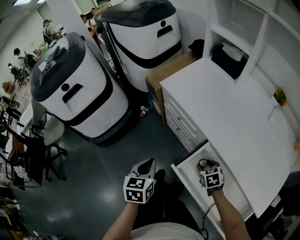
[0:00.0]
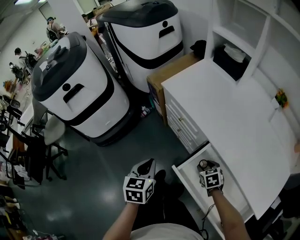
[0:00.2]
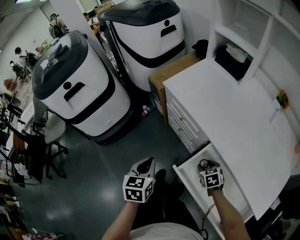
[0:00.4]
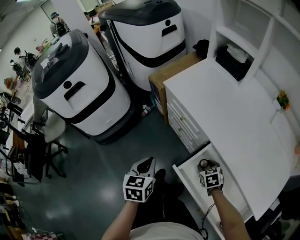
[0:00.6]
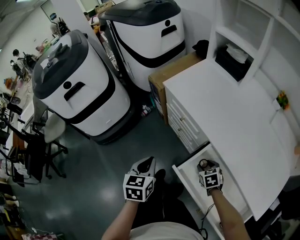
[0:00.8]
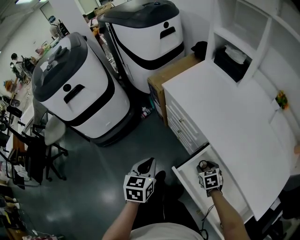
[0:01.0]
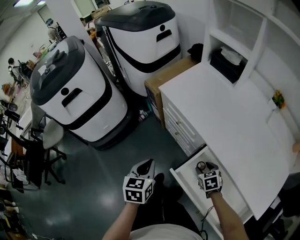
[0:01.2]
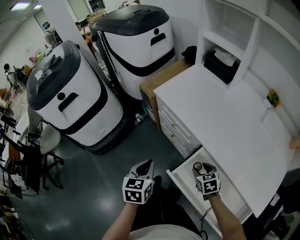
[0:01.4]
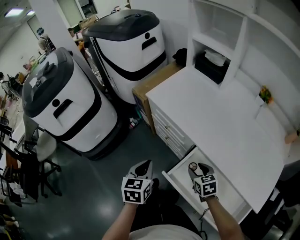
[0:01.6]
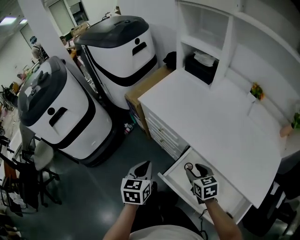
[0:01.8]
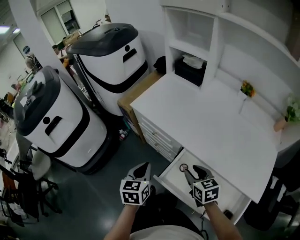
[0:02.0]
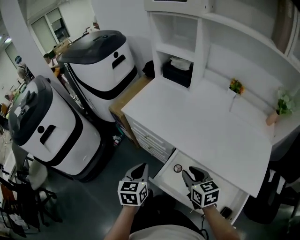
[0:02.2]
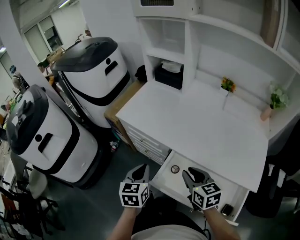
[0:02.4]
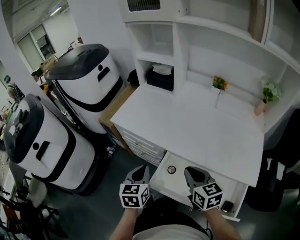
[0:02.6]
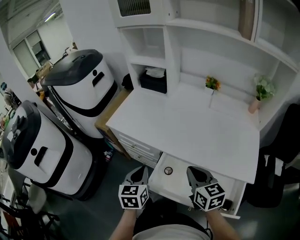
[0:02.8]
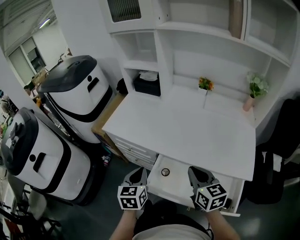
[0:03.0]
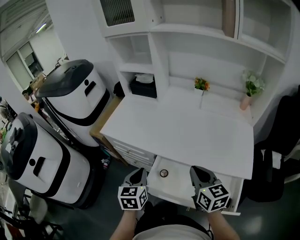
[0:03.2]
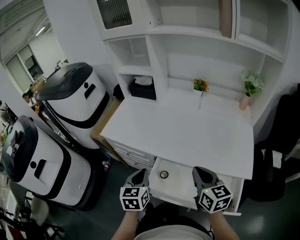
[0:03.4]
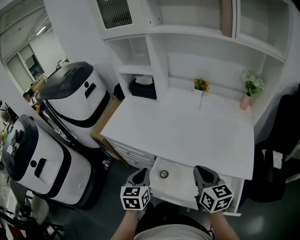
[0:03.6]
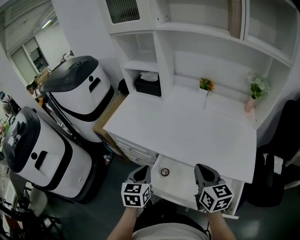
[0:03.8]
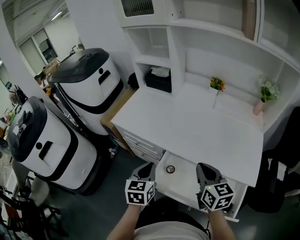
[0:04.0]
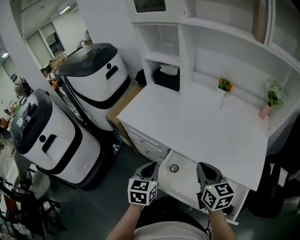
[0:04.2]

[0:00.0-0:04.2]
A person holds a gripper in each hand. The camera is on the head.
0:00.0 to 0:01.4: The grippers move only a little.
0:01.4 to 0:02.8: The right gripper goes approximately 20 cm upward, tilts its fingers some 30 degrees upward, and closes; the left gripper is displaced to the right by approximately 15 cm, and rotates roughly 20 degrees.

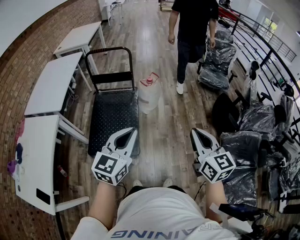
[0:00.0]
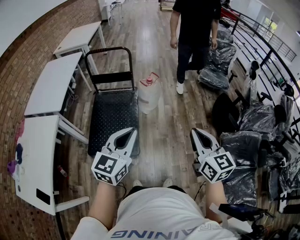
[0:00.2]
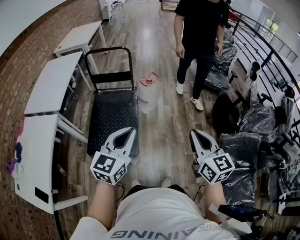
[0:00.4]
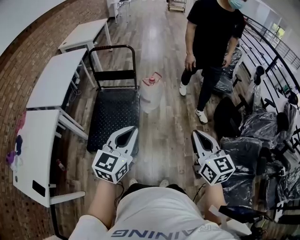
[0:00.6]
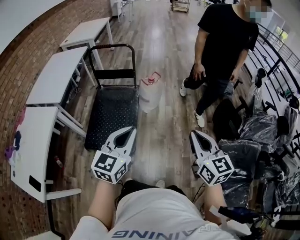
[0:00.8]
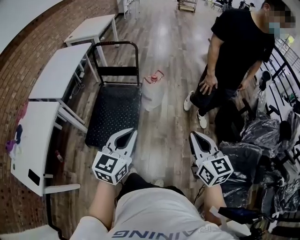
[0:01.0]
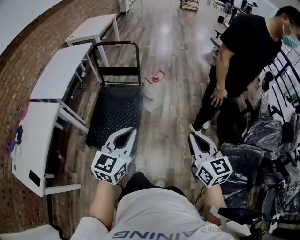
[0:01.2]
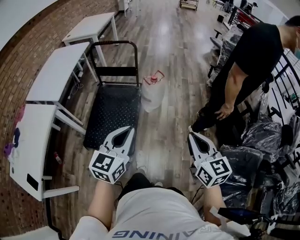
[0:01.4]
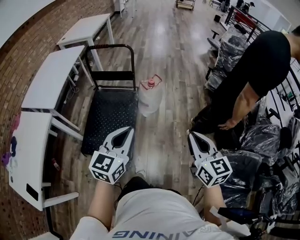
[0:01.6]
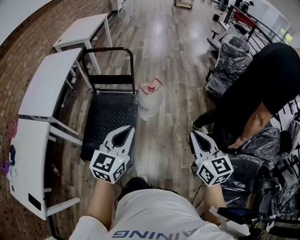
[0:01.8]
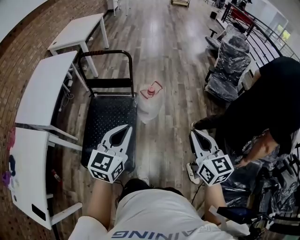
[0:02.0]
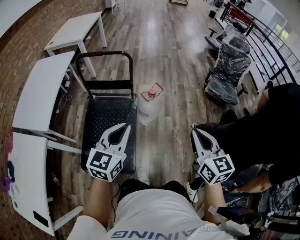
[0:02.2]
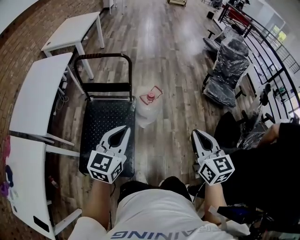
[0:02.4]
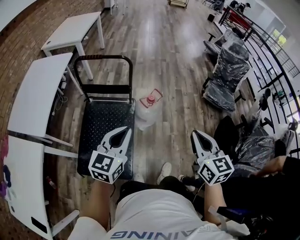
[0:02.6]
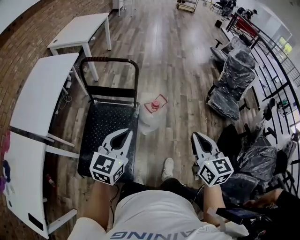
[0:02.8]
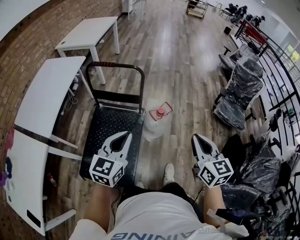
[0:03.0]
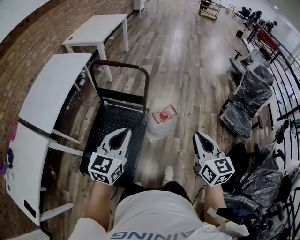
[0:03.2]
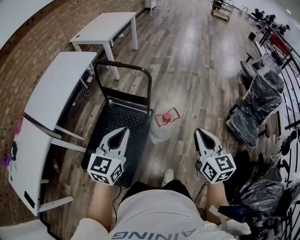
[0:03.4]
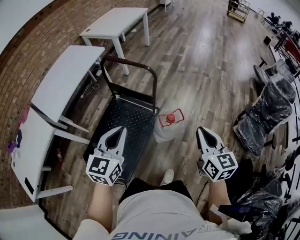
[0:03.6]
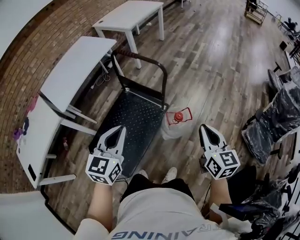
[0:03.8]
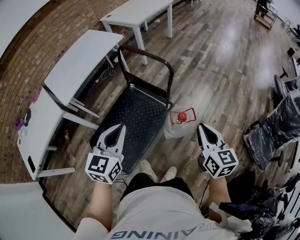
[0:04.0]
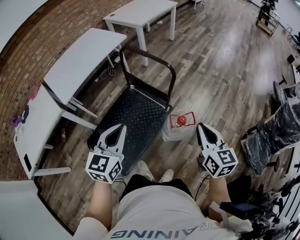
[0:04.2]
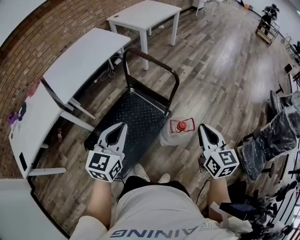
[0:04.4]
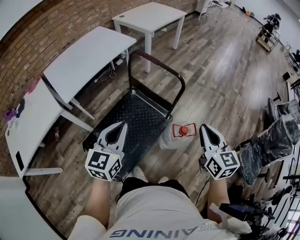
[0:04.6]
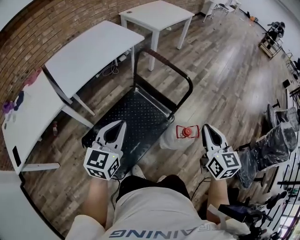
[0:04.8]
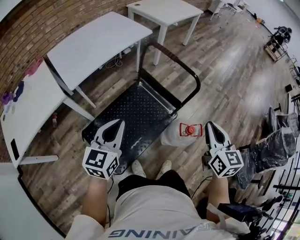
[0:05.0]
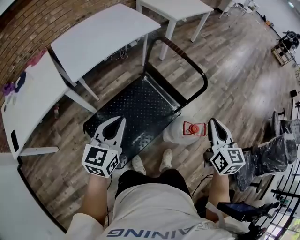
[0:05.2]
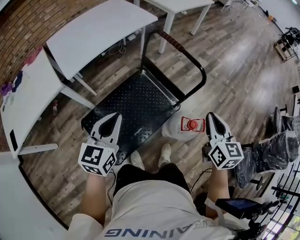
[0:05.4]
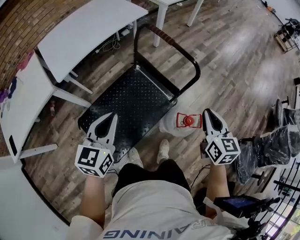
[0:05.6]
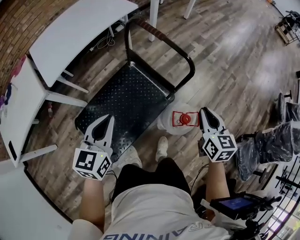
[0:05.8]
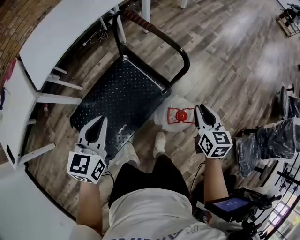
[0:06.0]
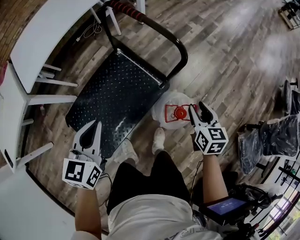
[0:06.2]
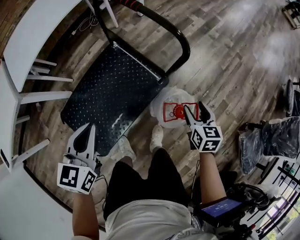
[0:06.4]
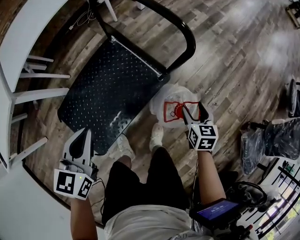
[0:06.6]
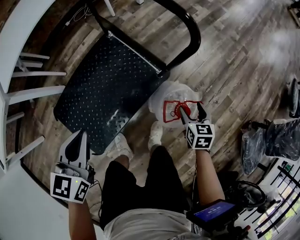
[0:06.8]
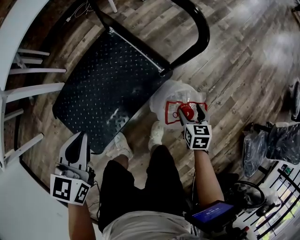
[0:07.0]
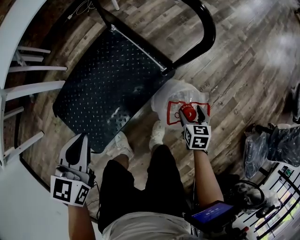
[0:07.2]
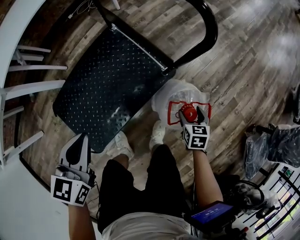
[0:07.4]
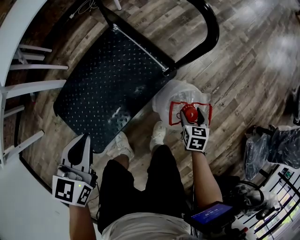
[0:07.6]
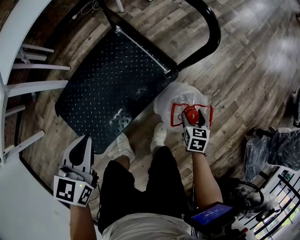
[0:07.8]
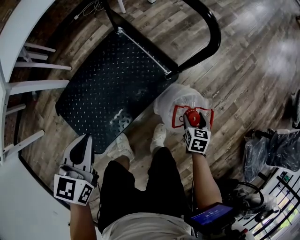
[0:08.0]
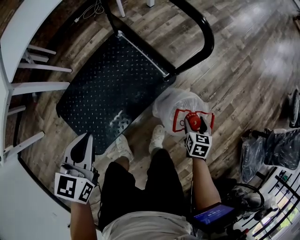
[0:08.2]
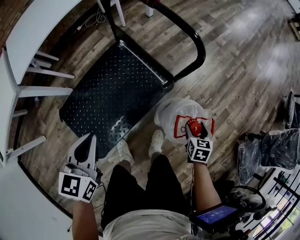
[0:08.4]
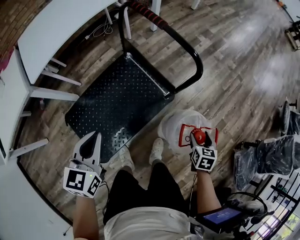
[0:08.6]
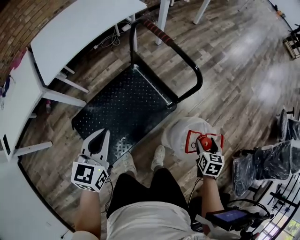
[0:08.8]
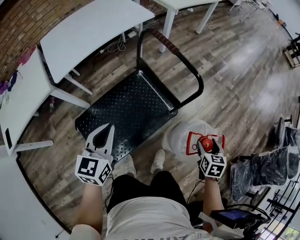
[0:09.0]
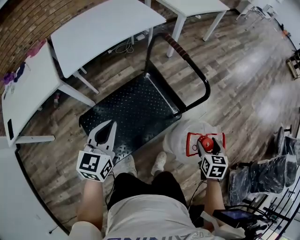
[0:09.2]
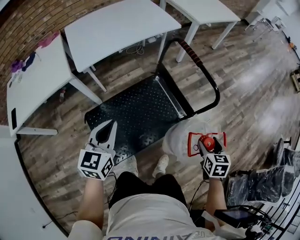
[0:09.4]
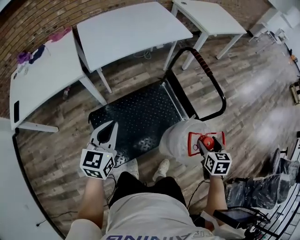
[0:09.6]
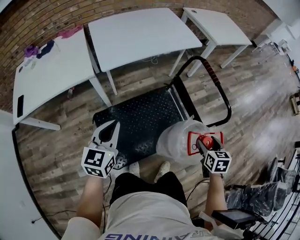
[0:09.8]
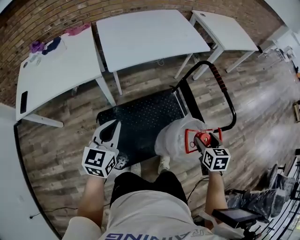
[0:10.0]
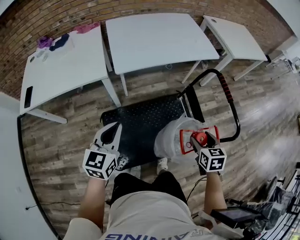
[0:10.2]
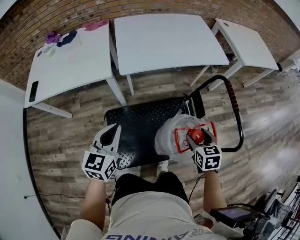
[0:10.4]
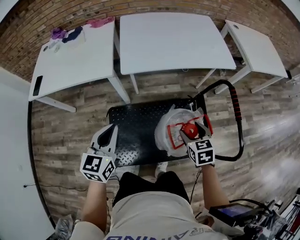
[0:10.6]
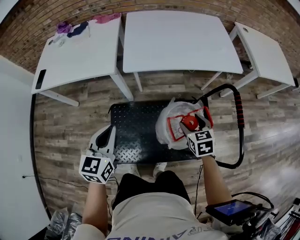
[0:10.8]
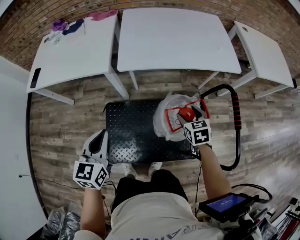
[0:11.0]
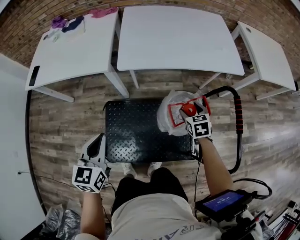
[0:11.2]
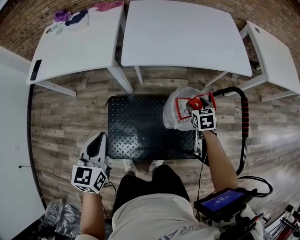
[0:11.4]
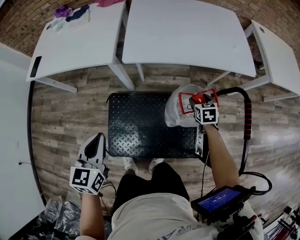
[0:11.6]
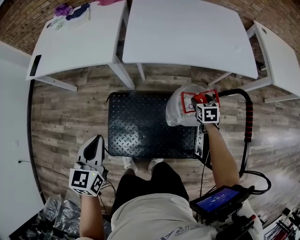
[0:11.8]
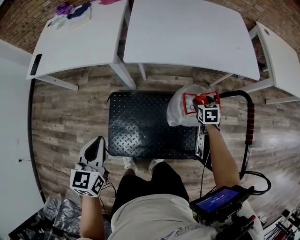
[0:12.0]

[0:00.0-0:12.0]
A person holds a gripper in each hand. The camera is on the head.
0:00.0 to 0:01.6: Both grippers travel together forward, about 10 cm.
0:01.6 to 0:03.0: The right gripper is displaced forward by about 30 cm. The left gripper moves forward and to the left, roughly 25 cm.
0:03.0 to 0:04.4: The left gripper changes place by some 10 cm, and changes its angle by some 30 degrees; the right gripper shifts by approximately 20 cm, and swivels some 30 degrees.
0:04.4 to 0:06.0: The left gripper moves downward and forward, some 15 cm, and moves about 15 cm to the left and comes back, while the right gripper goes some 25 cm downward and forward.
0:06.0 to 0:07.6: The right gripper is displaced downward by about 35 cm, changes its angle by some 20 degrees, and opens its fingers. Meanwhile the left gripper moves downward, approximately 15 cm.
0:07.6 to 0:09.0: The right gripper goes some 30 cm upward. Meanwhile the left gripper goes about 20 cm upward.
0:09.0 to 0:10.4: The left gripper changes place by roughly 25 cm, and rotates roughly 30 degrees; the right gripper moves approximately 40 cm, and turns by roughly 40 degrees.
0:10.4 to 0:12.0: The right gripper is displaced forward and downward by approximately 30 cm; the left gripper is displaced downward by about 5 cm, and changes its angle by approximately 30 degrees.

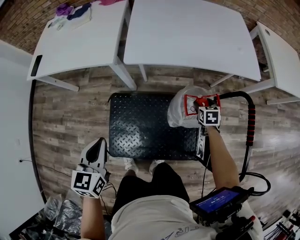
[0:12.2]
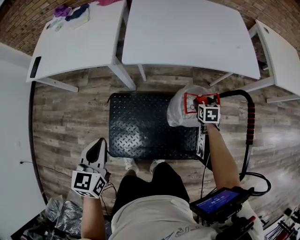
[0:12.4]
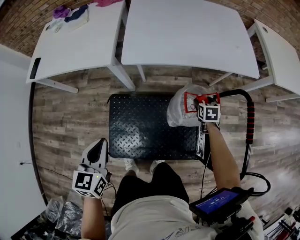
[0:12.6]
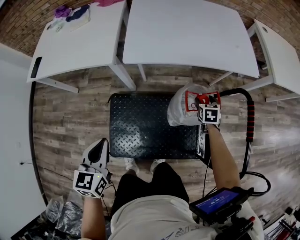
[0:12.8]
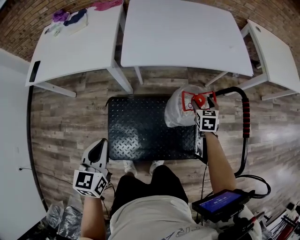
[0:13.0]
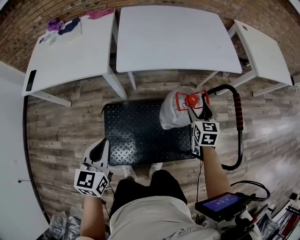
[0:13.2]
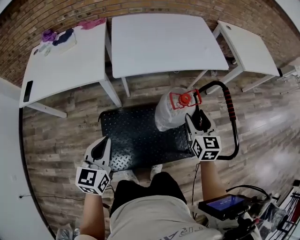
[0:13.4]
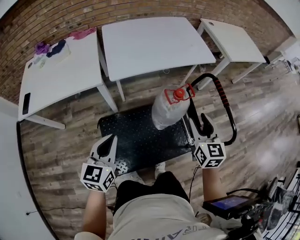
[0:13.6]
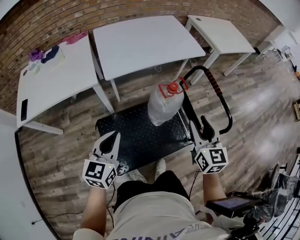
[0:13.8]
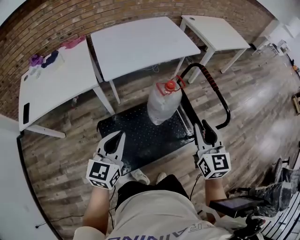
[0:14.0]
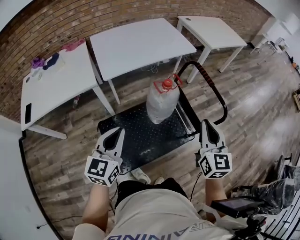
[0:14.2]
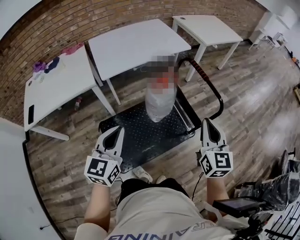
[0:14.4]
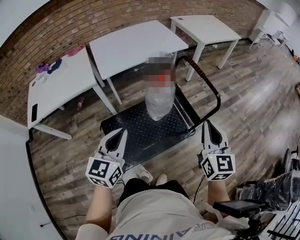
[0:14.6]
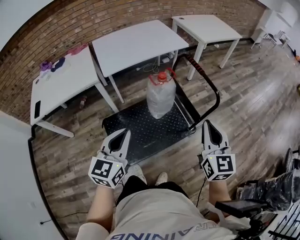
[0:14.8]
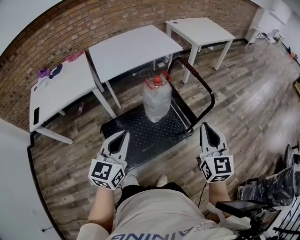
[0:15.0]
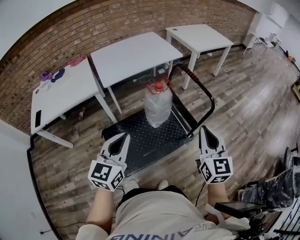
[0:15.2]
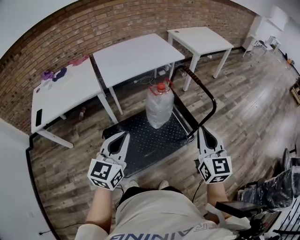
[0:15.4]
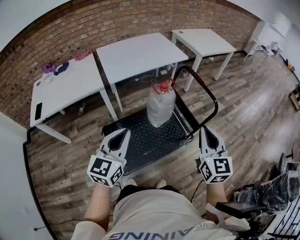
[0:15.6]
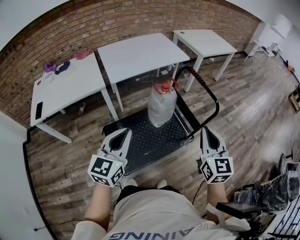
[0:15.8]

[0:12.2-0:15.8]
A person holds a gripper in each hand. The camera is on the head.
0:12.2 to 0:14.0: The right gripper goes roughly 40 cm upward, tips its fingers upward by about 40 degrees, and closes up. The left gripper is displaced upward by some 10 cm, and changes its angle by roughly 40 degrees.
0:14.0 to 0:15.8: The grippers both shift backward and upward by some 15 cm. The right gripper closes its fingers.

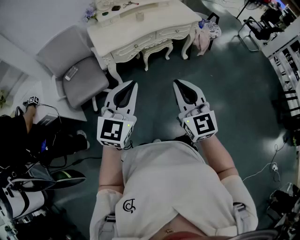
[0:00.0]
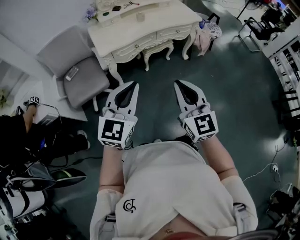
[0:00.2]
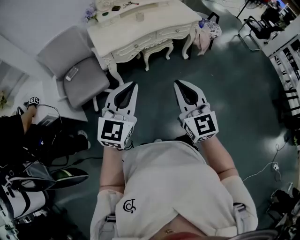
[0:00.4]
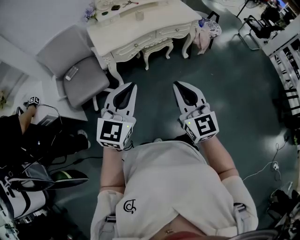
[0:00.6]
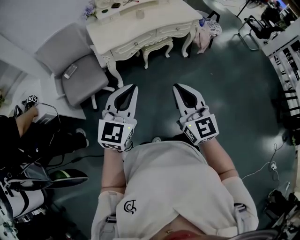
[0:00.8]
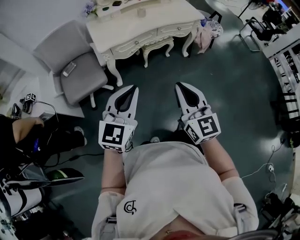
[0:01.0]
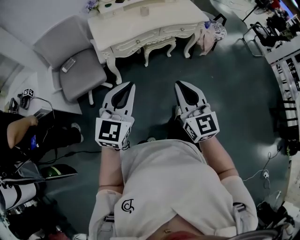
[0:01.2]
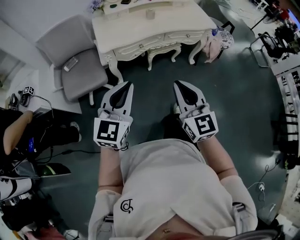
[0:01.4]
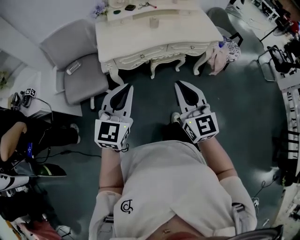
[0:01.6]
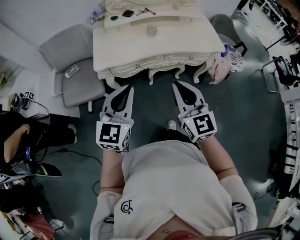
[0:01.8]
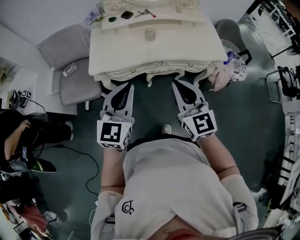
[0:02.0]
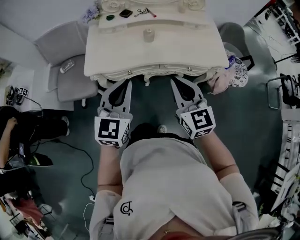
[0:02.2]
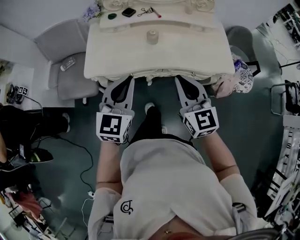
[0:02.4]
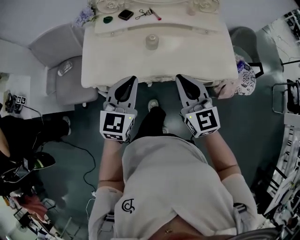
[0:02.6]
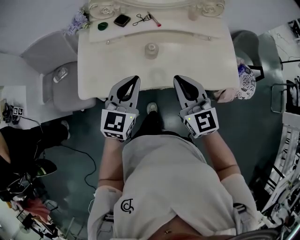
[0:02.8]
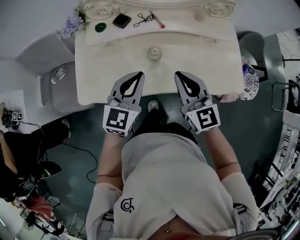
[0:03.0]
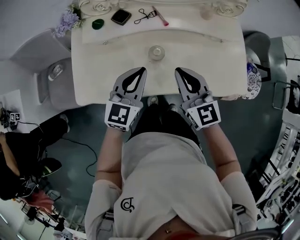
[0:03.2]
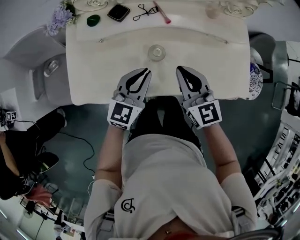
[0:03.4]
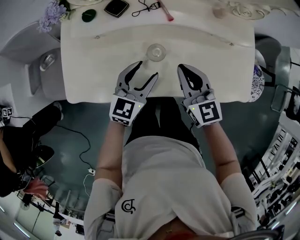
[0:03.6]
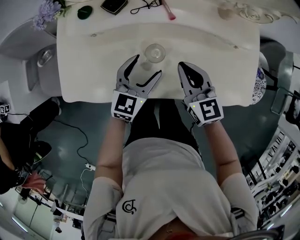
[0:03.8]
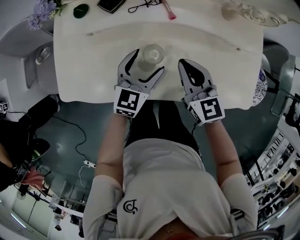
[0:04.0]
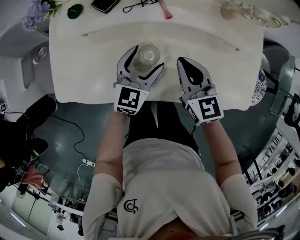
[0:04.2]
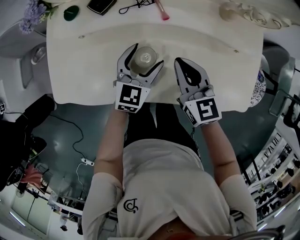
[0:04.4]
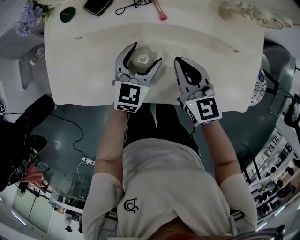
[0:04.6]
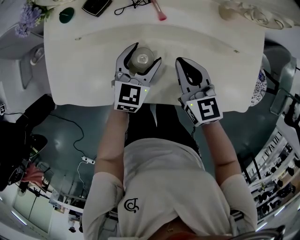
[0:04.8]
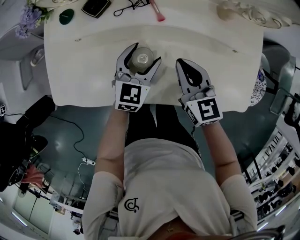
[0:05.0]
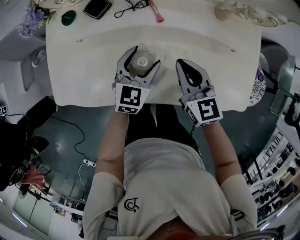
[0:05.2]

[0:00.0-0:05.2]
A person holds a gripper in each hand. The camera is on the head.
0:00.0 to 0:01.8: Both grippers travel together forward, some 25 cm. The left gripper swivels about 20 degrees.
0:01.8 to 0:03.4: Both grippers are carried forward, some 40 cm. The left gripper goes some 20 cm downward.
0:03.4 to 0:05.2: The right gripper is displaced downward and forward by some 10 cm; the left gripper moves downward, forward and to the right, approximately 15 cm, and opens.
